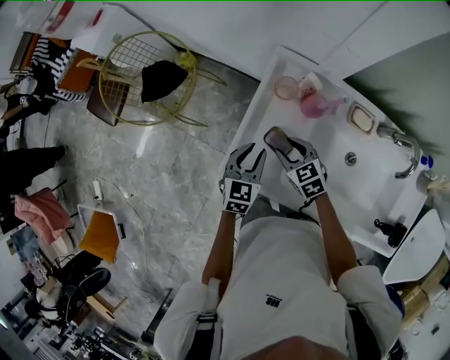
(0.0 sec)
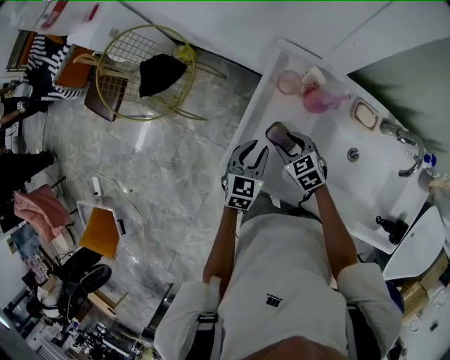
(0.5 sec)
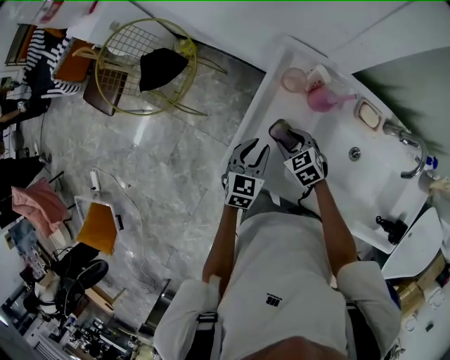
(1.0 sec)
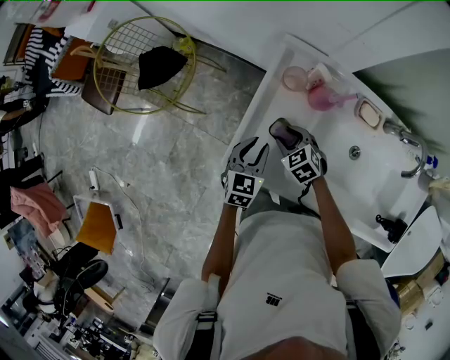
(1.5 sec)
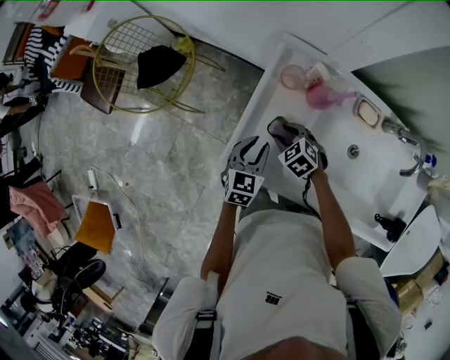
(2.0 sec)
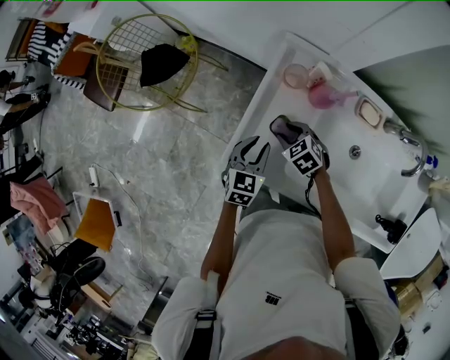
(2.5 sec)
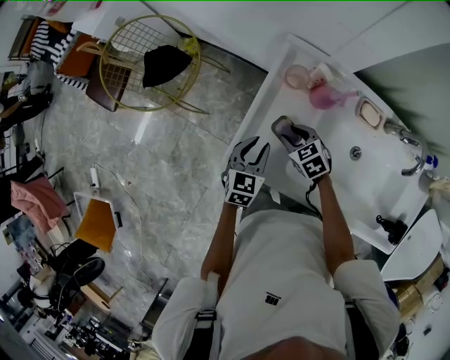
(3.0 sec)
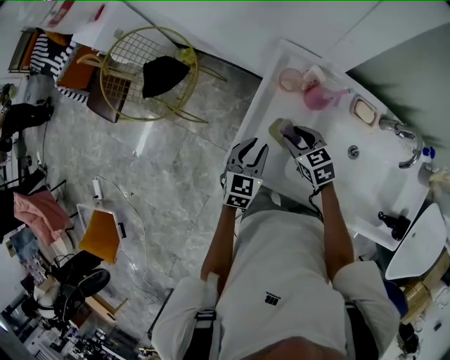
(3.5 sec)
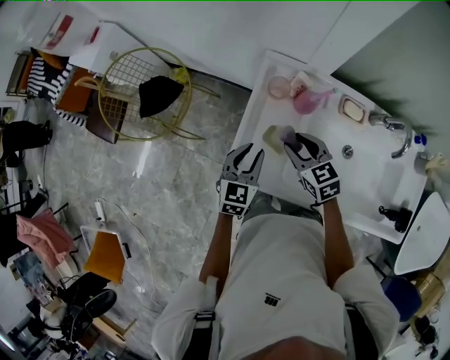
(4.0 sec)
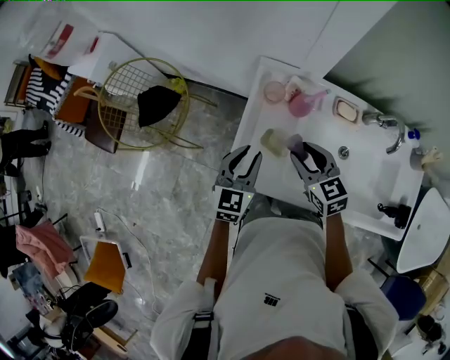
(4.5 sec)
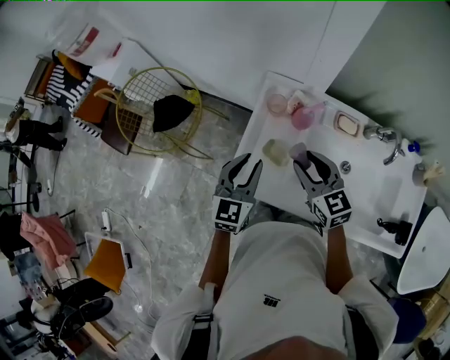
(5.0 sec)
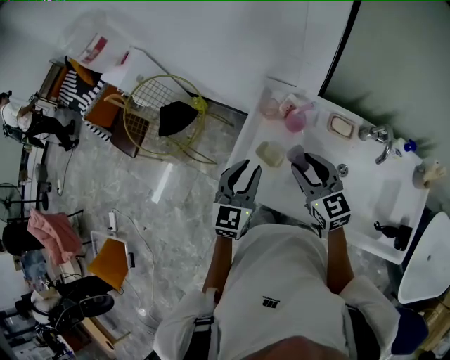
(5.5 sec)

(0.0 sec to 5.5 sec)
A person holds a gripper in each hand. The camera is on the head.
0.0 sec - 2.0 sec: The right gripper travels downward by about 5 cm, and changes its angle by about 20 degrees.
2.0 sec - 3.5 sec: The right gripper is displaced upward by approximately 5 cm, and turns by approximately 30 degrees.
3.5 sec - 5.5 sec: The left gripper goes some 15 cm upward, while the right gripper moves upward, to the right and backward, approximately 25 cm, and swivels about 30 degrees.

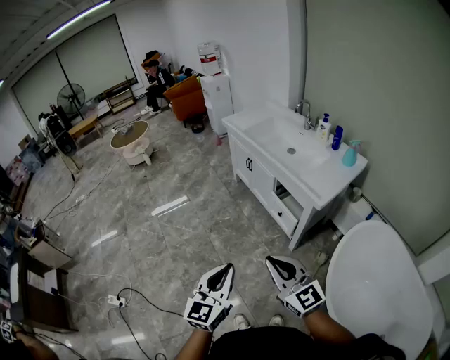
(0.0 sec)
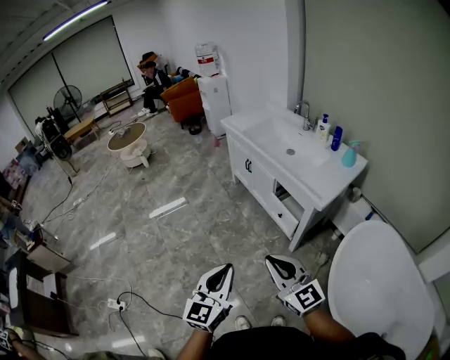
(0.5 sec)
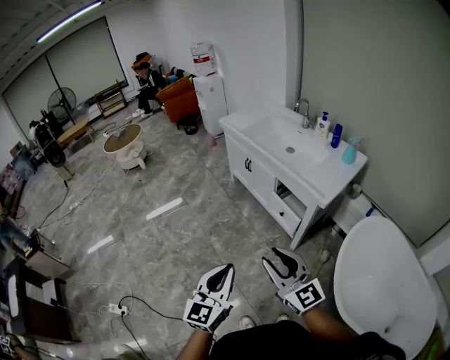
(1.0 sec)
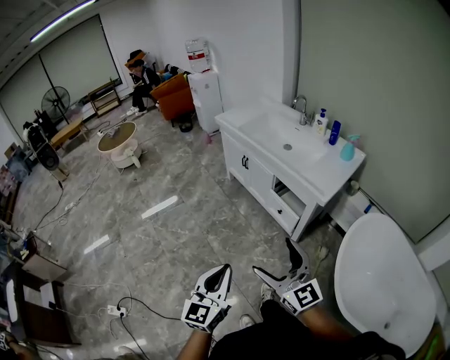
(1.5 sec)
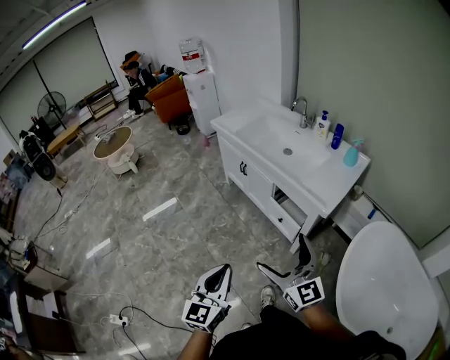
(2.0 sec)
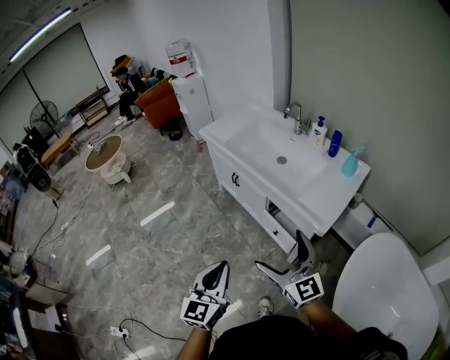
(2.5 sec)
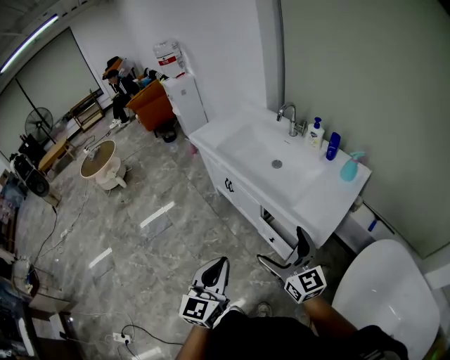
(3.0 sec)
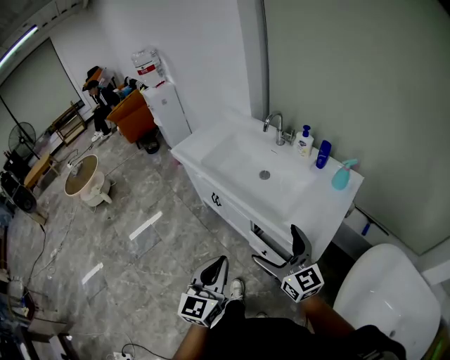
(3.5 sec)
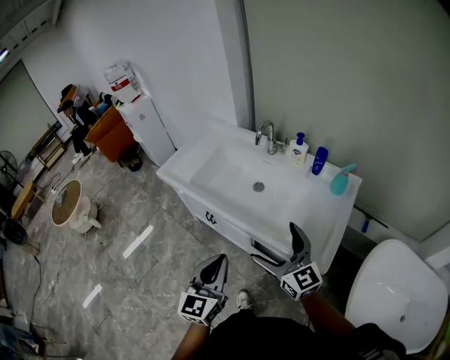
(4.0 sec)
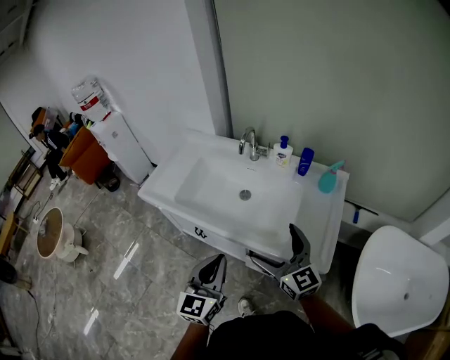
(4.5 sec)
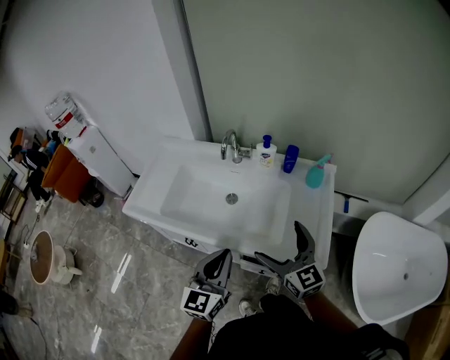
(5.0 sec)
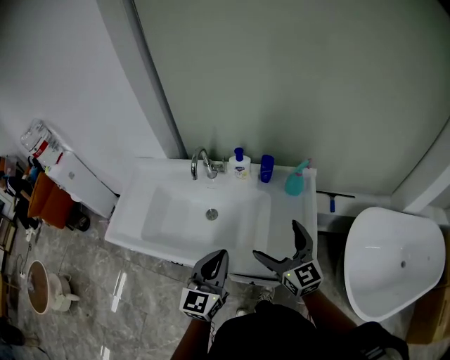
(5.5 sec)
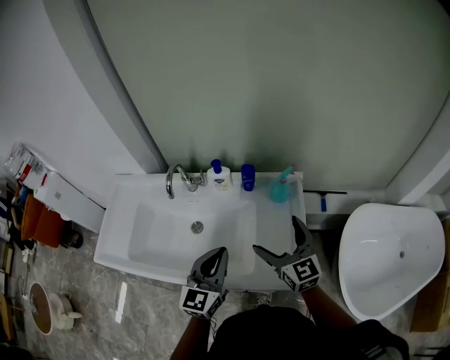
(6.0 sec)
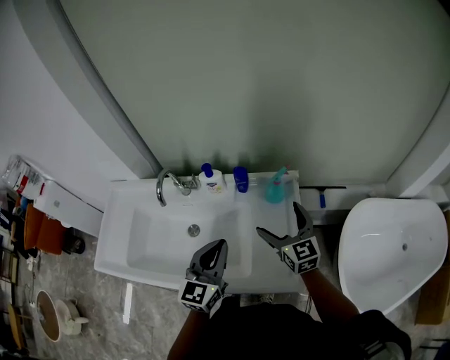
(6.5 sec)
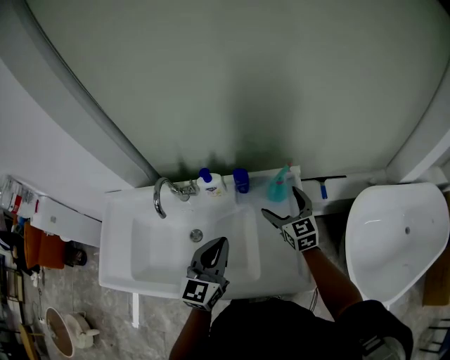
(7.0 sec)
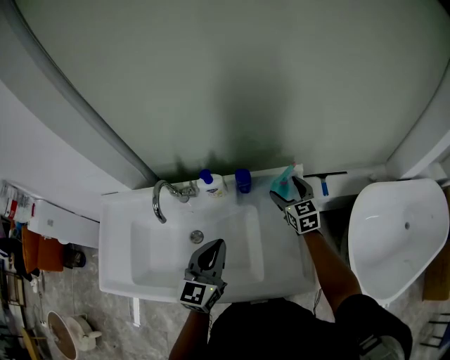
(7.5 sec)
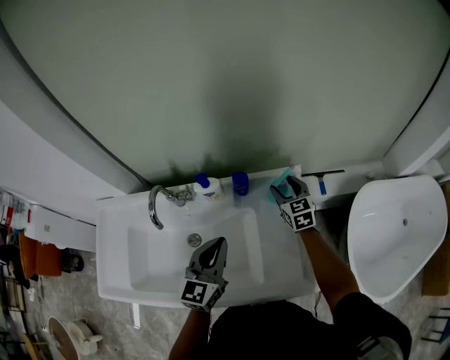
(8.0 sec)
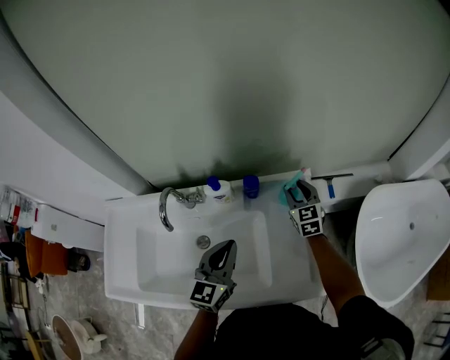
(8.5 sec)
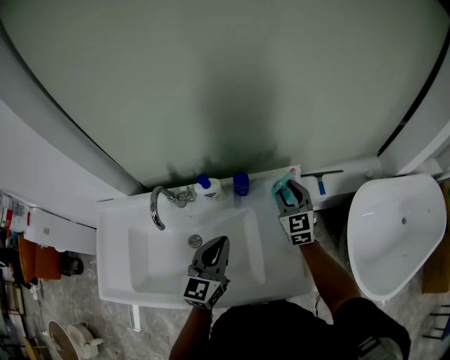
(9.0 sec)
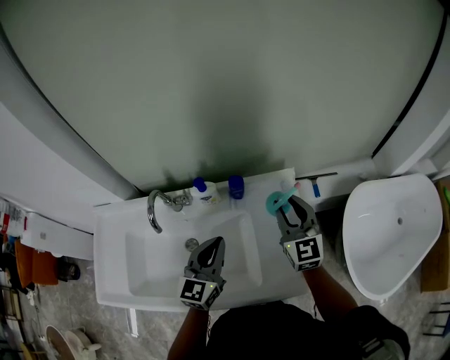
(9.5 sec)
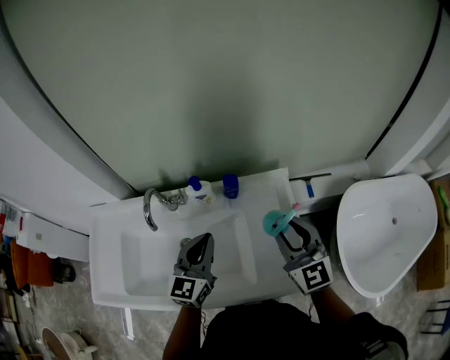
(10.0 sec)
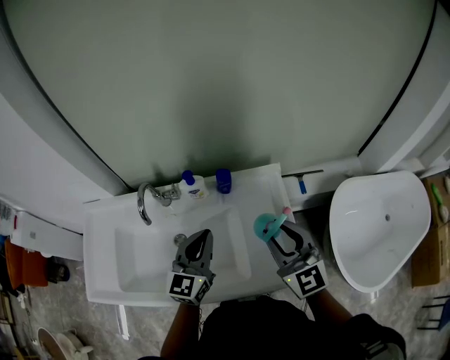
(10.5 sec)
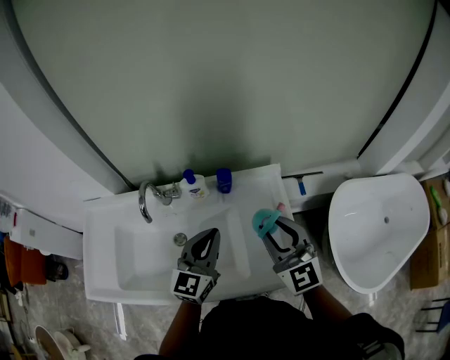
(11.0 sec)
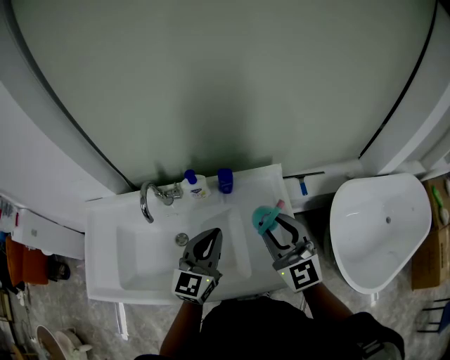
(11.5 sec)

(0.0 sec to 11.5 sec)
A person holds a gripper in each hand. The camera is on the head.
0.0 sec - 2.0 sec: Both grippers travel together forward, roughly 15 cm. The right gripper opens up.
2.0 sec - 4.0 sec: The two grippers go about 40 cm forward.
4.0 sec - 6.0 sec: The left gripper shifts by about 30 cm, and turns by some 30 degrees. Meanwhile the right gripper shifts by some 25 cm, and swivels approximately 30 degrees.
6.0 sec - 7.5 sec: The left gripper shifts some 10 cm forward; the right gripper goes some 25 cm forward and downward, and swivels about 20 degrees.
7.5 sec - 9.5 sec: The right gripper shifts some 15 cm upward and backward, changes its angle by roughly 20 degrees, and closes its fingers.
9.5 sec - 11.5 sec: The right gripper goes roughly 10 cm backward and upward.

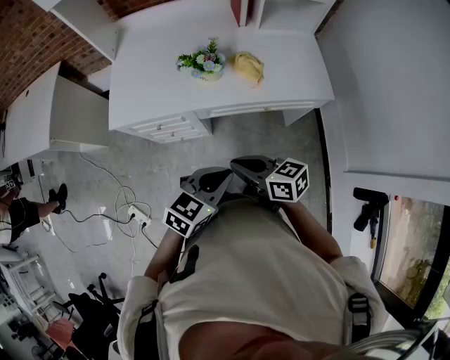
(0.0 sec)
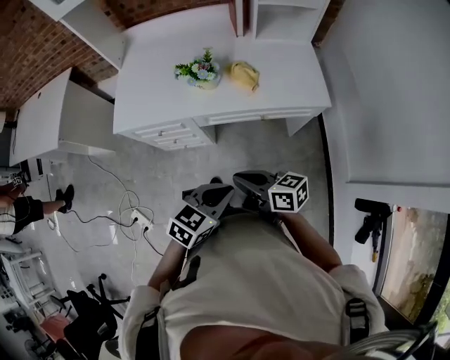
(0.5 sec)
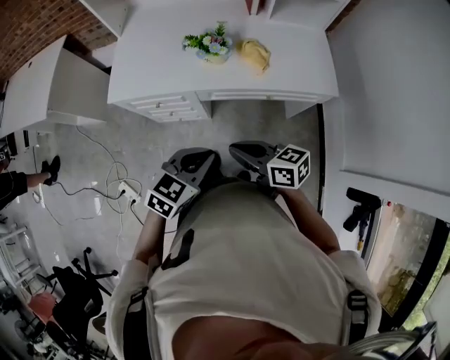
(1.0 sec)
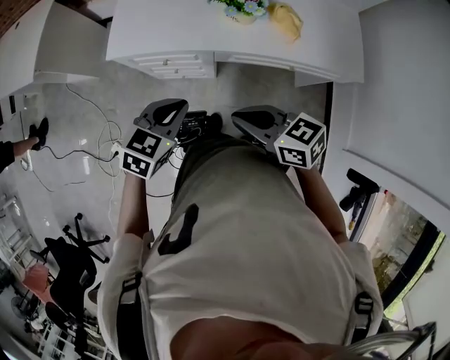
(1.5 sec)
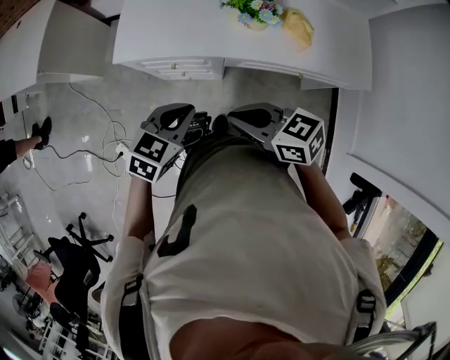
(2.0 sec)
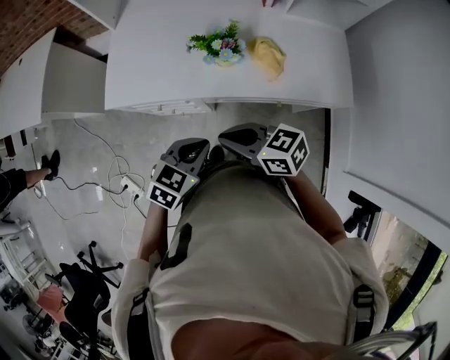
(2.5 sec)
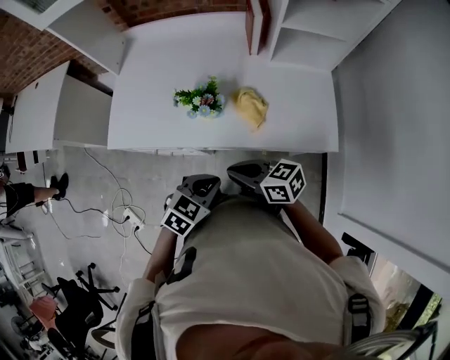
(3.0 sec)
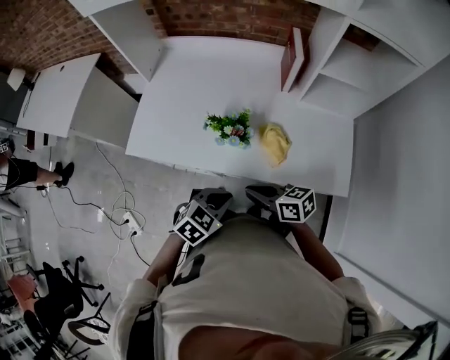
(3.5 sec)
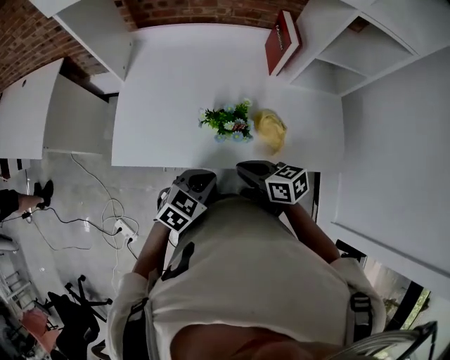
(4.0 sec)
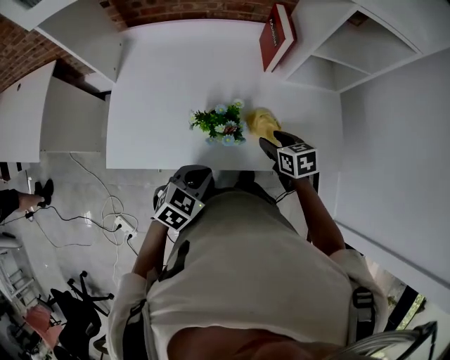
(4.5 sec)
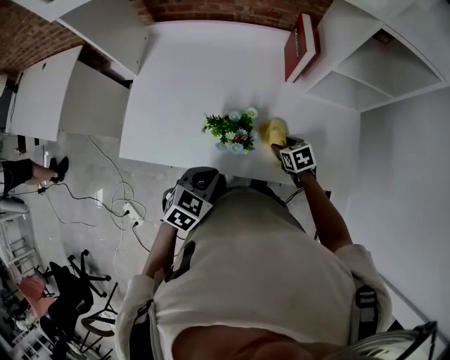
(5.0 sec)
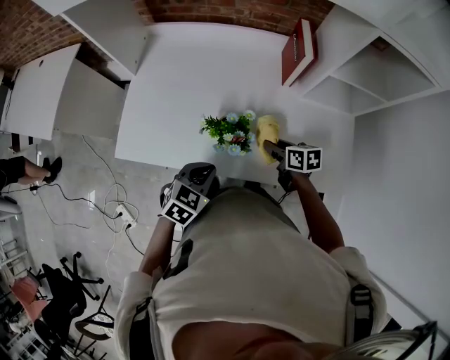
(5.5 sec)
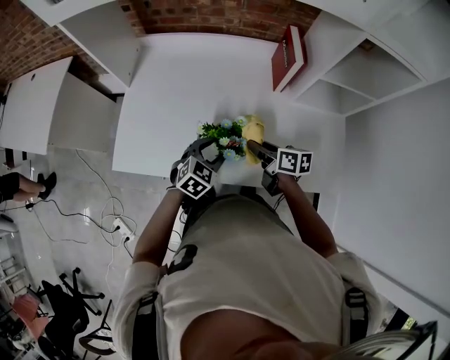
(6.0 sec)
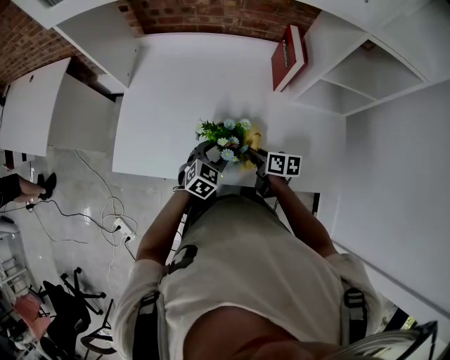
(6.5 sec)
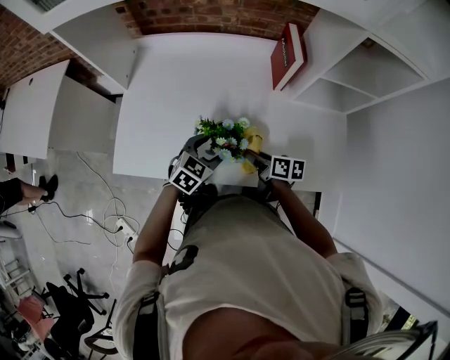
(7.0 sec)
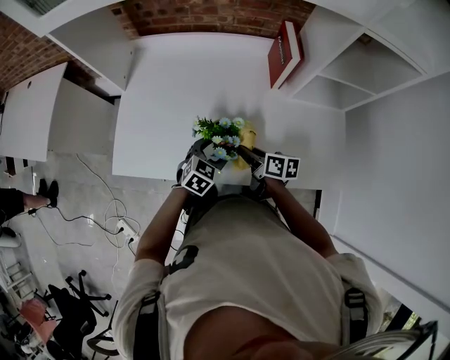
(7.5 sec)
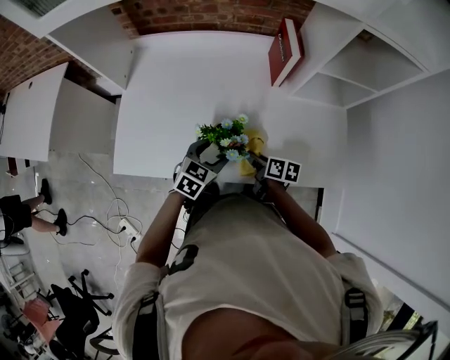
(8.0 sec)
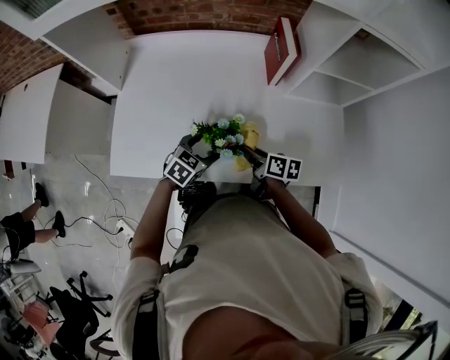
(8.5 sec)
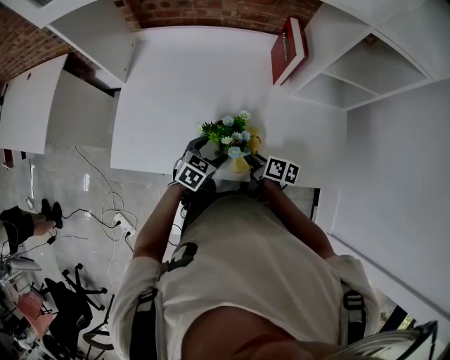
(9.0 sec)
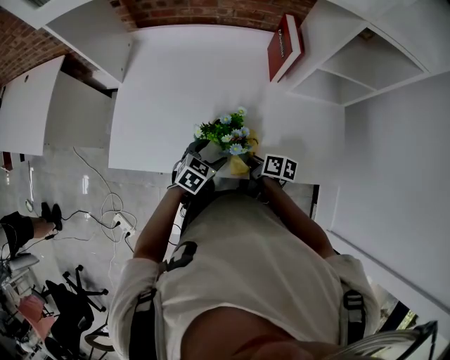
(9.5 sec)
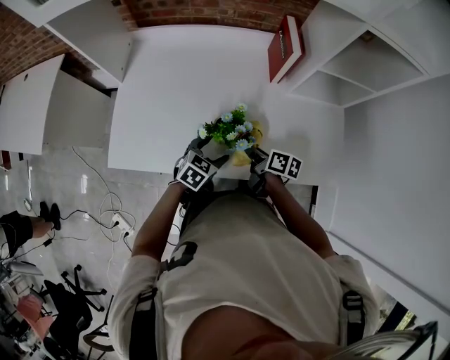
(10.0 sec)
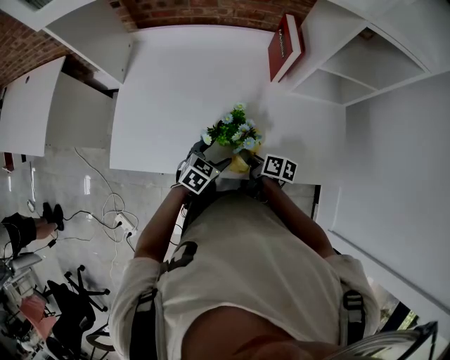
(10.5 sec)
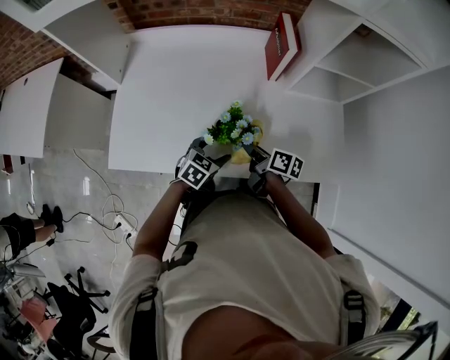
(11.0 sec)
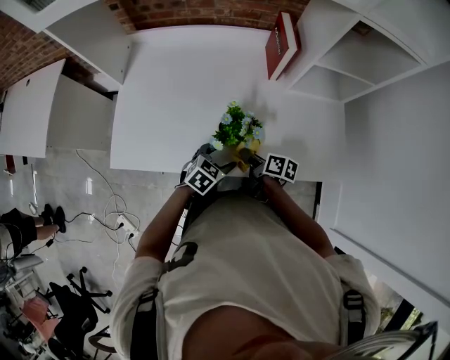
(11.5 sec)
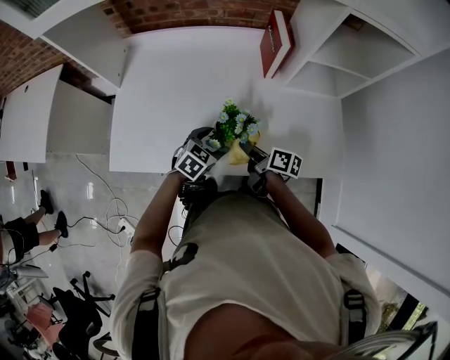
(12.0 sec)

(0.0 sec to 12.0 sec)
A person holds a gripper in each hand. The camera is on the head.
0.0 sec - 2.0 sec: The right gripper moves to the left and forward, about 10 cm, and swivels some 20 degrees. Meanwhile the left gripper shifts about 20 cm to the left and forward.
2.0 sec - 4.0 sec: The left gripper goes about 15 cm to the right and forward. The right gripper goes approximately 20 cm forward and to the right.
4.0 sec - 6.0 sec: The right gripper goes some 15 cm forward and to the right, and opens up, while the left gripper shifts roughly 15 cm forward and downward, and opens up.
6.0 sec - 8.0 sec: The right gripper goes approximately 10 cm downward.
8.0 sec - 10.0 sec: The left gripper shifts about 5 cm downward.
10.0 sec - 12.0 sec: The grippers stay close to where they were, moving slightly.
